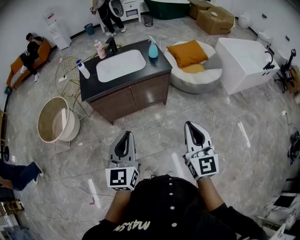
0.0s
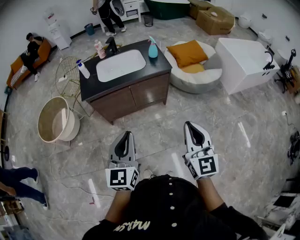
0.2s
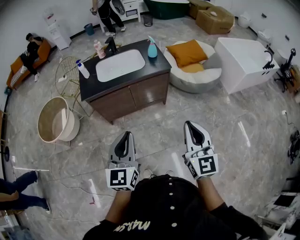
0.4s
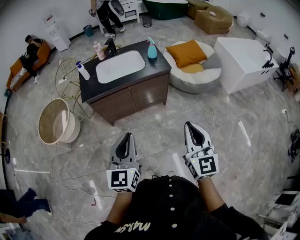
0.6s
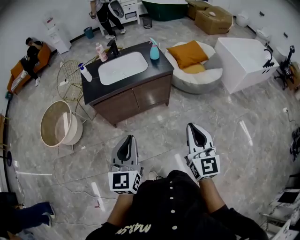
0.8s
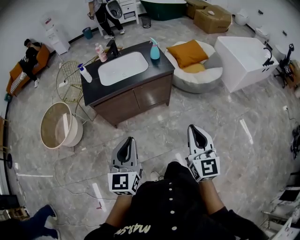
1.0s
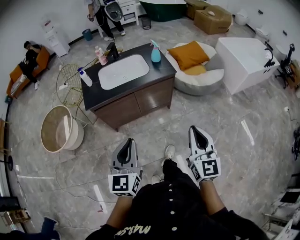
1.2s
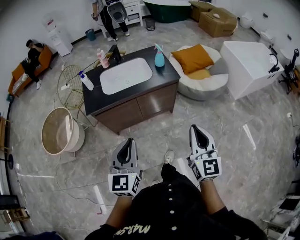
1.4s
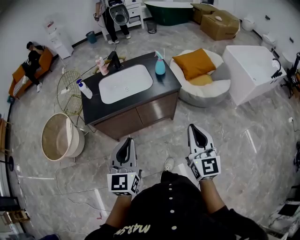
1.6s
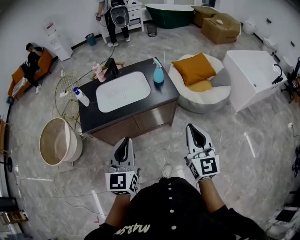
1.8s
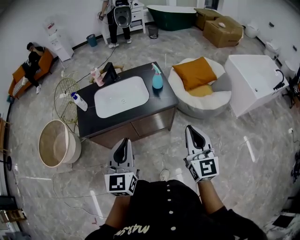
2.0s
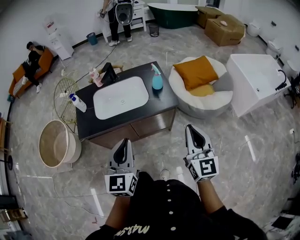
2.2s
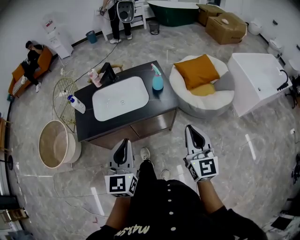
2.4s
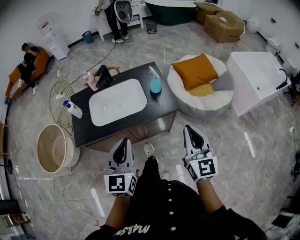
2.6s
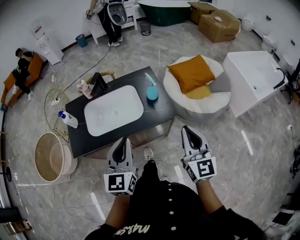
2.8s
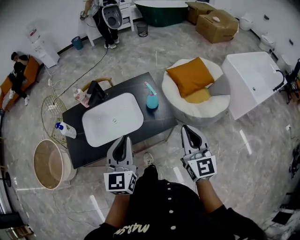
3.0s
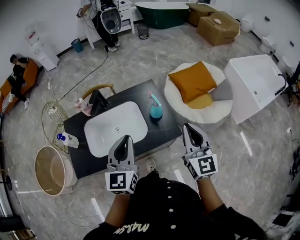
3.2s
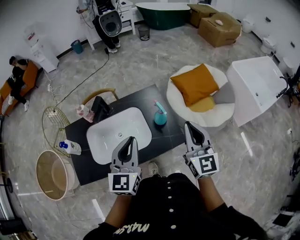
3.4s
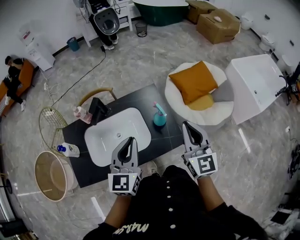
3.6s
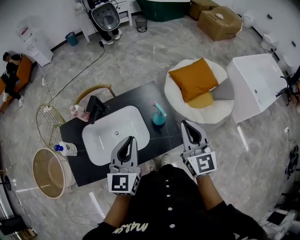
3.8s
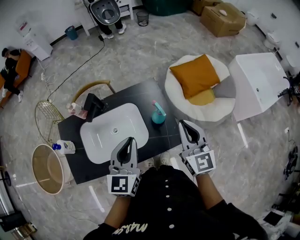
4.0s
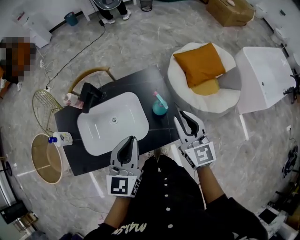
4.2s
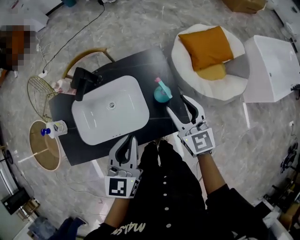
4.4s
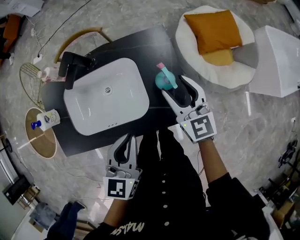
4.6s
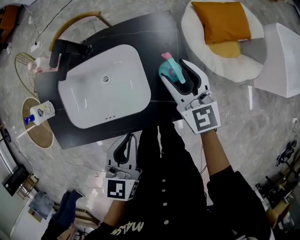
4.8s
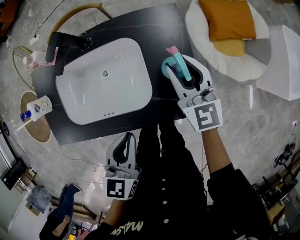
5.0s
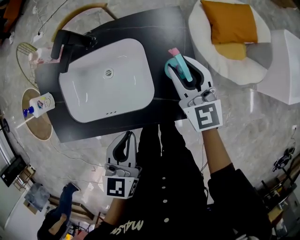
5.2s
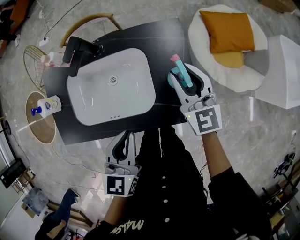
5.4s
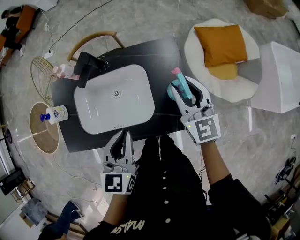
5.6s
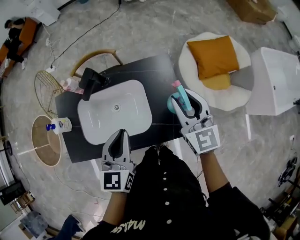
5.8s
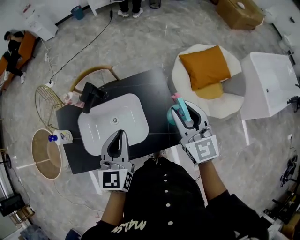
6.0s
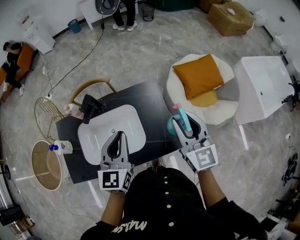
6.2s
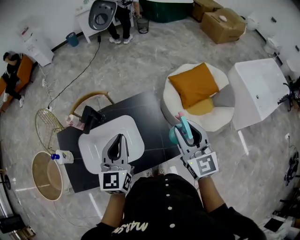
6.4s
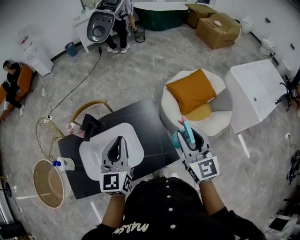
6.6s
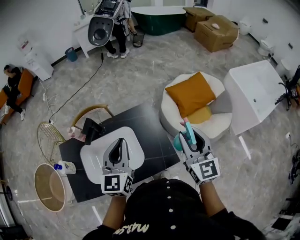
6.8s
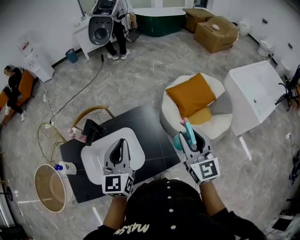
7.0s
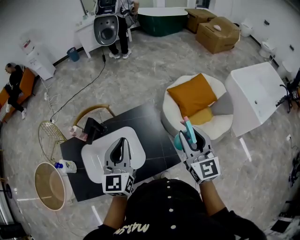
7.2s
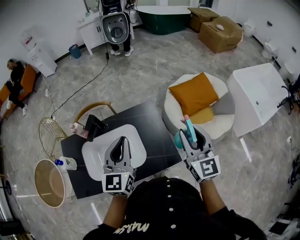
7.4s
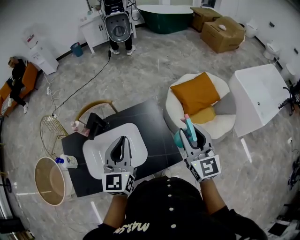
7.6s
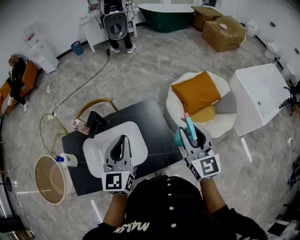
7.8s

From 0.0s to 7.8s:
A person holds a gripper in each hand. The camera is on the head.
From 0.0s to 1.6s: The grippers both shift forward by some 15 cm.
From 1.6s to 3.2s: The grippers both shift forward by about 40 cm.
From 3.2s to 4.6s: The right gripper moves forward and downward, about 30 cm, turns by some 30 degrees, and opens up, while the left gripper is displaced downward and forward by some 15 cm, and swivels roughly 20 degrees.
From 4.6s to 6.2s: The left gripper shifts roughly 15 cm upward and forward. Meanwhile the right gripper shifts roughly 15 cm upward, and closes.
From 6.2s to 7.8s: The right gripper changes place by roughly 5 cm.

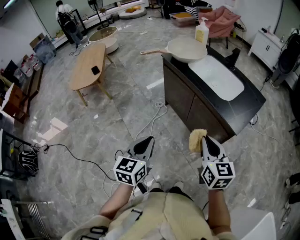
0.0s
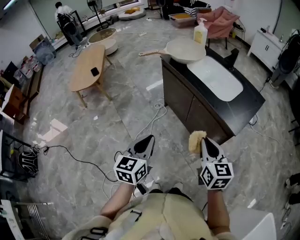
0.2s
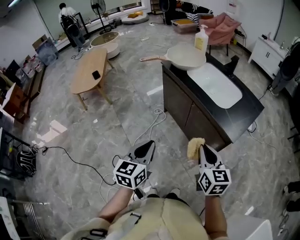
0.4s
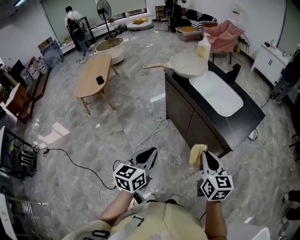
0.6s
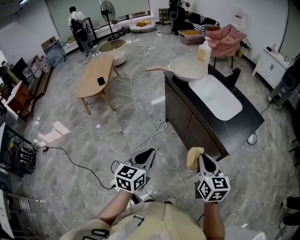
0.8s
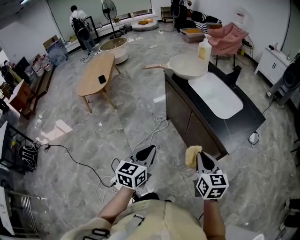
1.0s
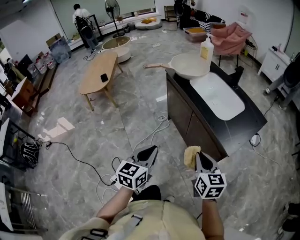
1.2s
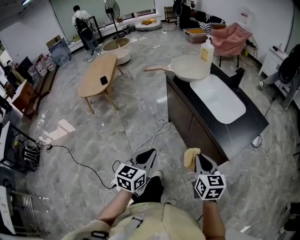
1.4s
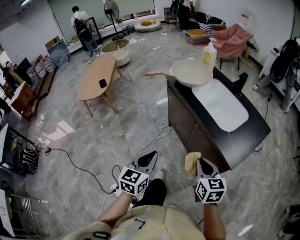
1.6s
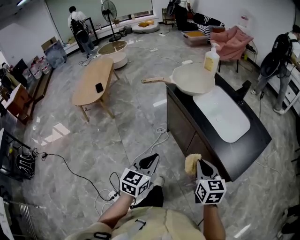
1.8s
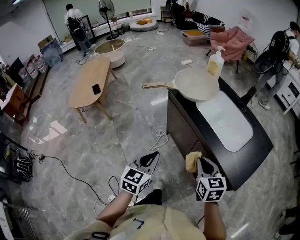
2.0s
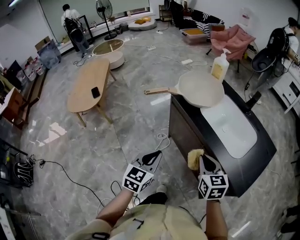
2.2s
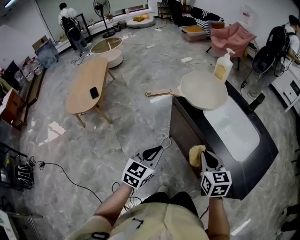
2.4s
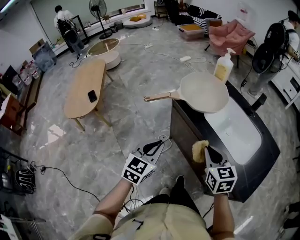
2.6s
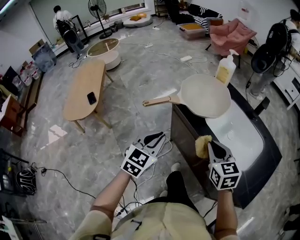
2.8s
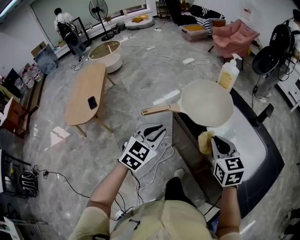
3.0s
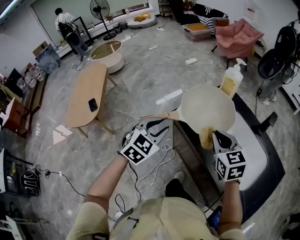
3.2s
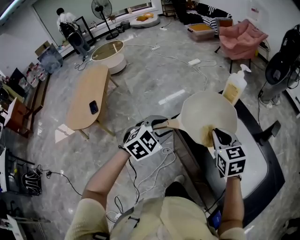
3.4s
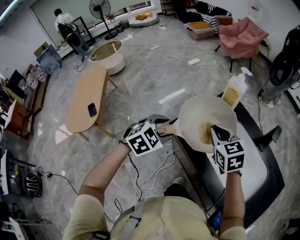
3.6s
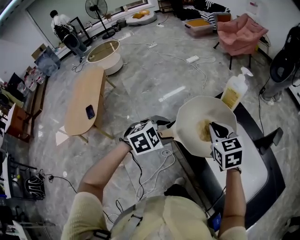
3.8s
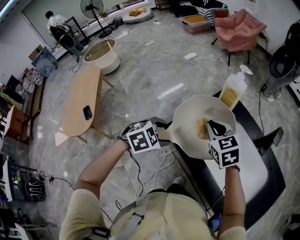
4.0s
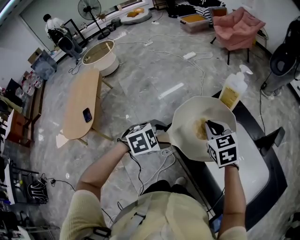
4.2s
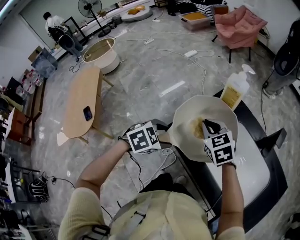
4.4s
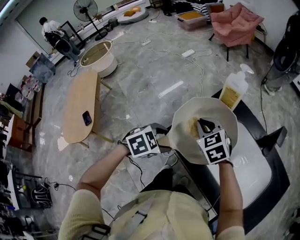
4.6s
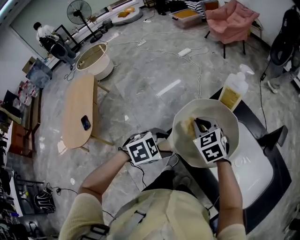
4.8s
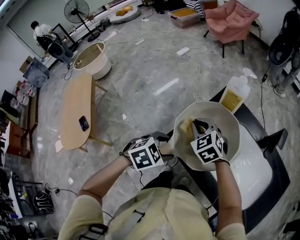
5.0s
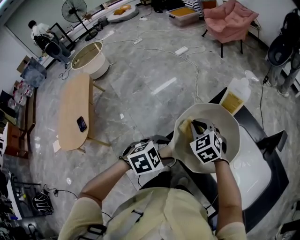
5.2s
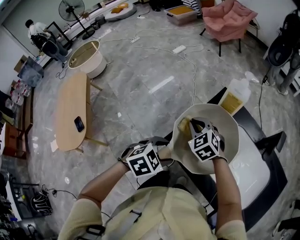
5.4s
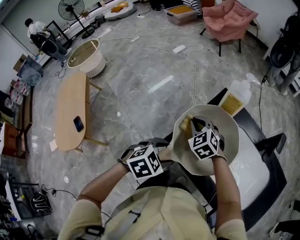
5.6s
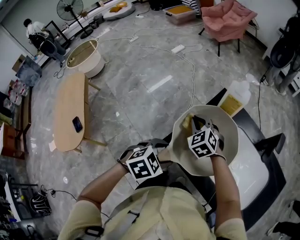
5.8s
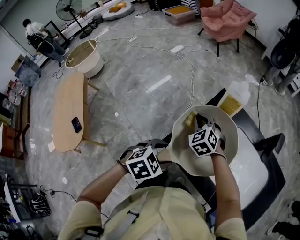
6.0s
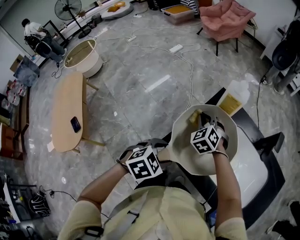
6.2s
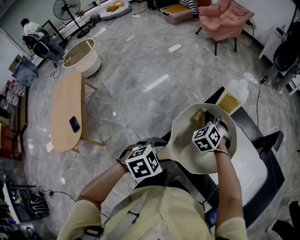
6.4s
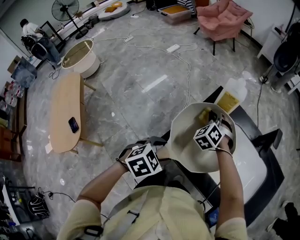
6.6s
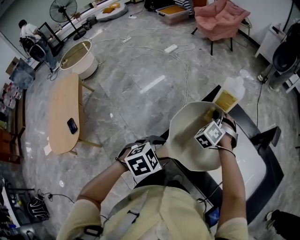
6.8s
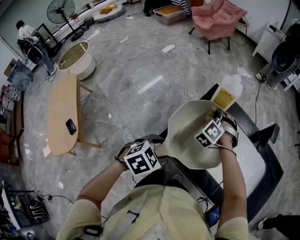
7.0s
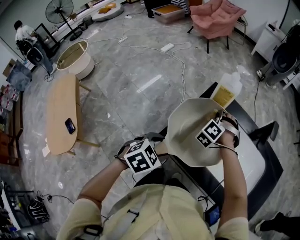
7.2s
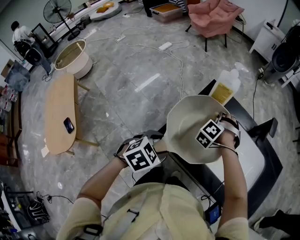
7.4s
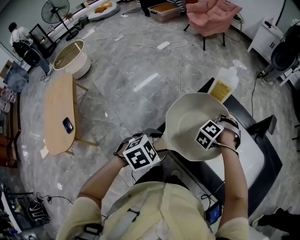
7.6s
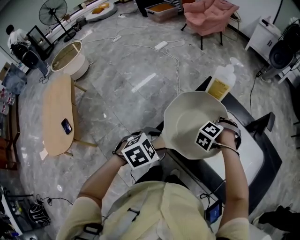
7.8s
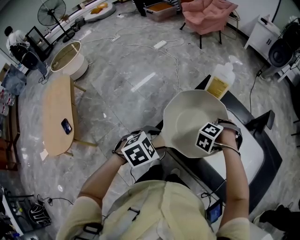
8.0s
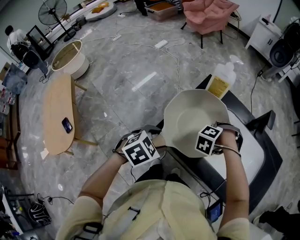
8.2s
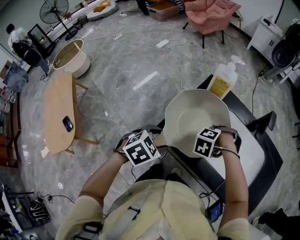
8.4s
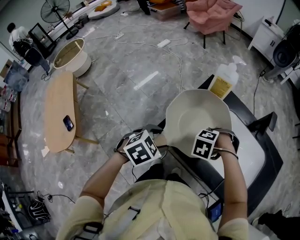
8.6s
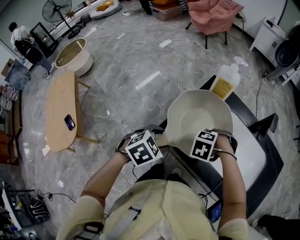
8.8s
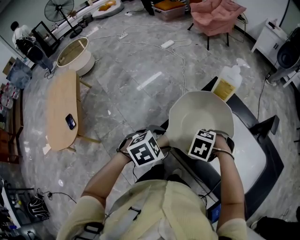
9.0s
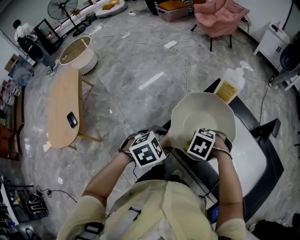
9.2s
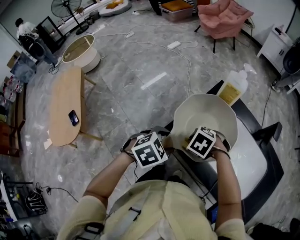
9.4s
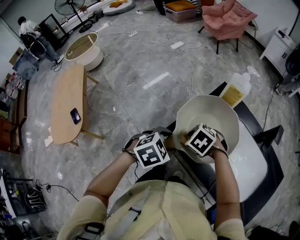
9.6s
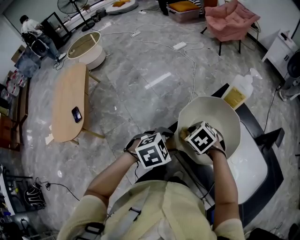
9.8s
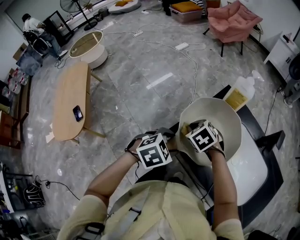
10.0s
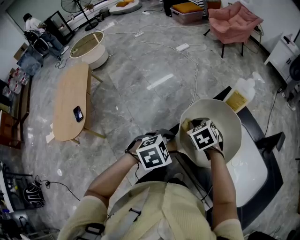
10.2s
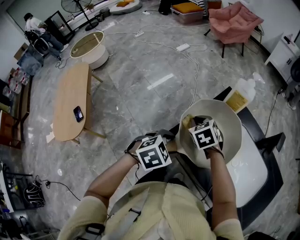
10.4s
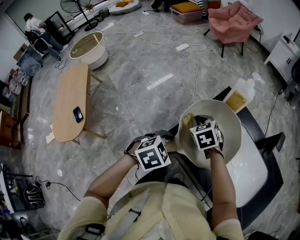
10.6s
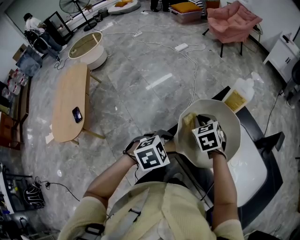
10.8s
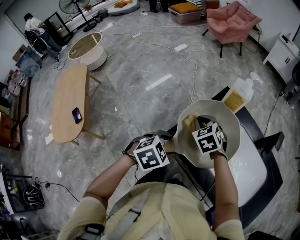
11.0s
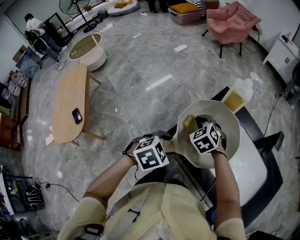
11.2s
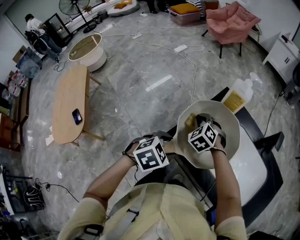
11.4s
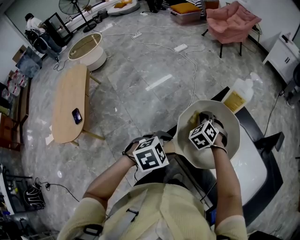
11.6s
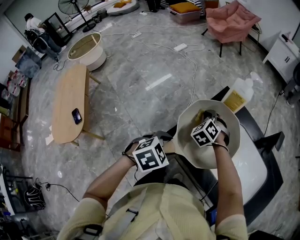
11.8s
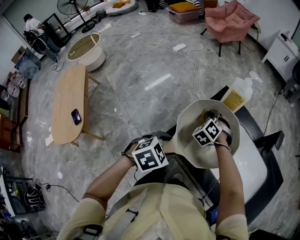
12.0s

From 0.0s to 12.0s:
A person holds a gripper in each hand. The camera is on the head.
From 0.0s to 1.6s: The right gripper shifts approximately 10 cm forward and downward. Meanwhile the left gripper moves forward and to the right, about 10 cm.
From 1.6s to 3.0s: The pair of grippers is taken forward, roughly 40 cm. The left gripper swivels some 30 degrees.
From 3.0s to 4.4s: The left gripper moves forward and downward, roughly 20 cm, points its fingers approximately 30 degrees further downward, and opens up. Meanwhile the right gripper shifts roughly 25 cm forward.
From 4.4s to 6.0s: The right gripper goes approximately 15 cm forward, downward and to the left, and changes its angle by some 20 degrees.
From 6.0s to 7.6s: The right gripper moves about 15 cm, and turns by about 50 degrees.
From 7.6s to 9.0s: The right gripper shifts by roughly 20 cm, and angles its fingers downward, by about 30 degrees.
From 9.0s to 10.4s: The right gripper changes place by approximately 15 cm, and angles its fingers upward, by about 40 degrees.
From 10.4s to 12.0s: The right gripper goes approximately 10 cm forward and to the right, and swivels about 40 degrees.

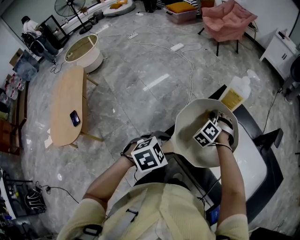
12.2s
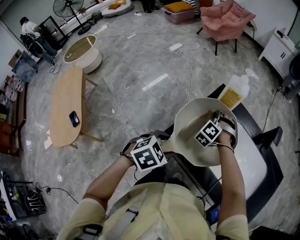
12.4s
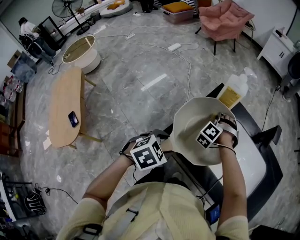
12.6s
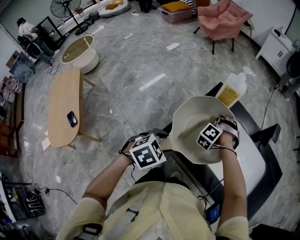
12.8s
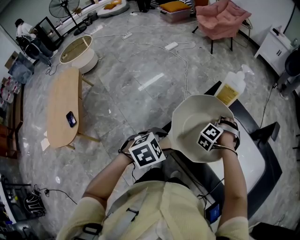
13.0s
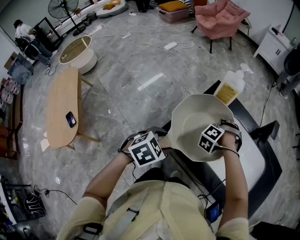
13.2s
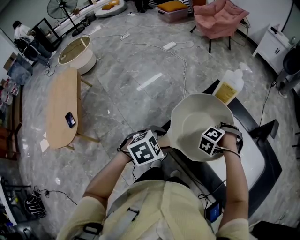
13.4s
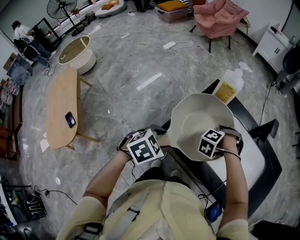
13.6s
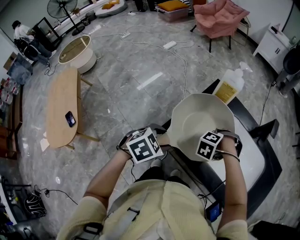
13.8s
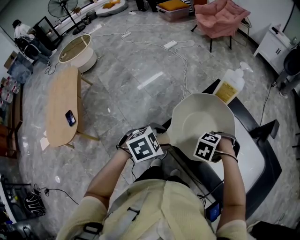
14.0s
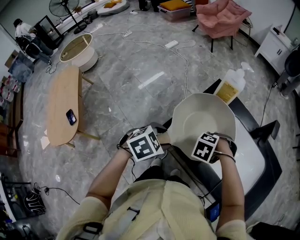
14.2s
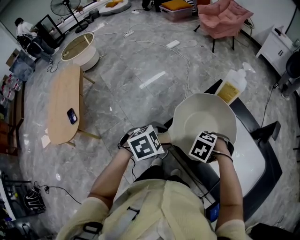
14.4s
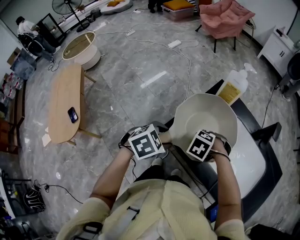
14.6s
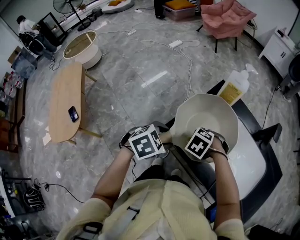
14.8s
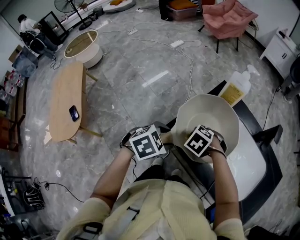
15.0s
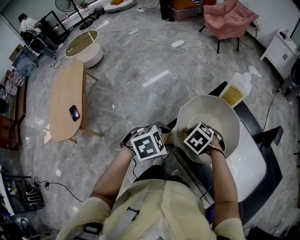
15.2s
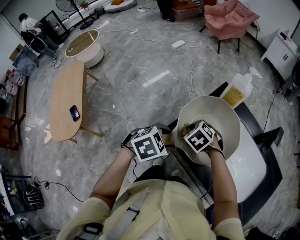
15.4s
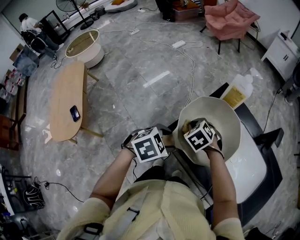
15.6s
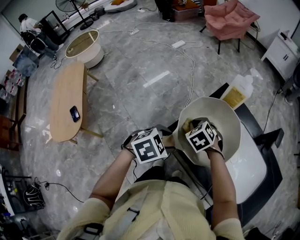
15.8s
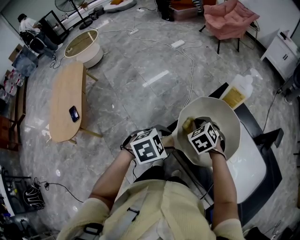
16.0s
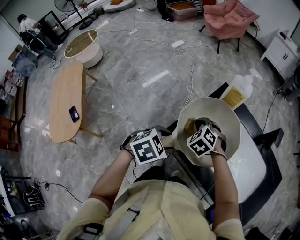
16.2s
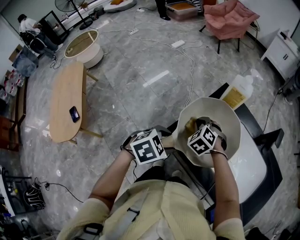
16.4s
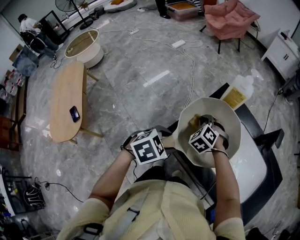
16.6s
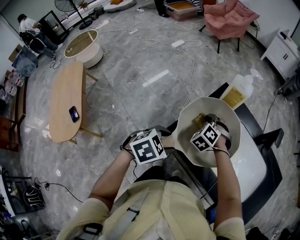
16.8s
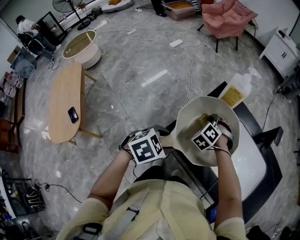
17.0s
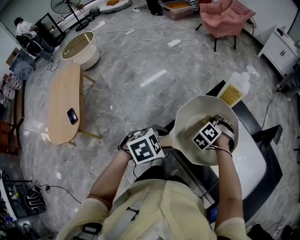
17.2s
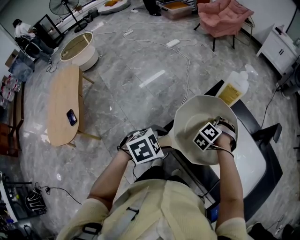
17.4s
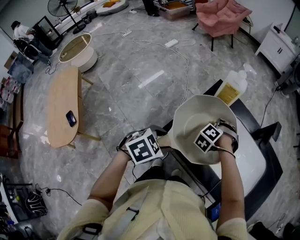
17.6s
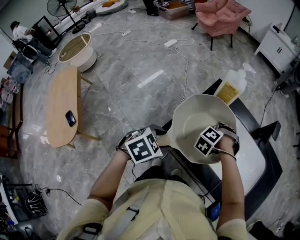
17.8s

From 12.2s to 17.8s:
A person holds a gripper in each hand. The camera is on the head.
From 12.2s to 13.6s: The right gripper travels to the right by roughly 15 cm, and rotates some 40 degrees.
From 13.6s to 15.0s: The right gripper changes place by approximately 15 cm, and turns by about 40 degrees.
From 15.0s to 16.4s: The right gripper shifts by roughly 10 cm, and turns by about 30 degrees.
From 16.4s to 17.8s: The right gripper changes place by some 15 cm, and changes its angle by approximately 30 degrees.
